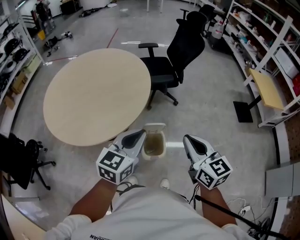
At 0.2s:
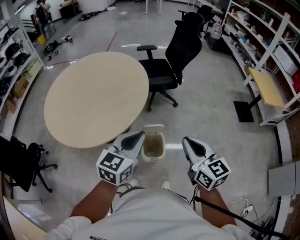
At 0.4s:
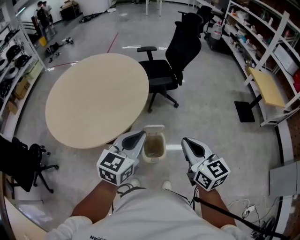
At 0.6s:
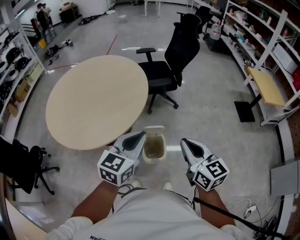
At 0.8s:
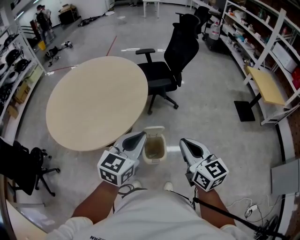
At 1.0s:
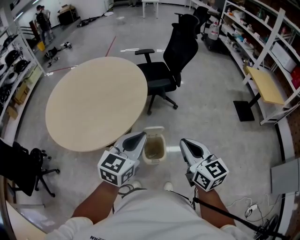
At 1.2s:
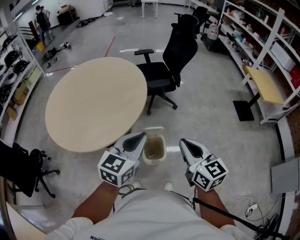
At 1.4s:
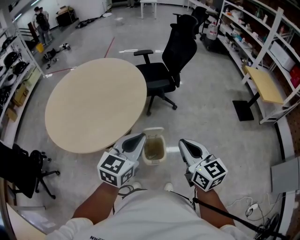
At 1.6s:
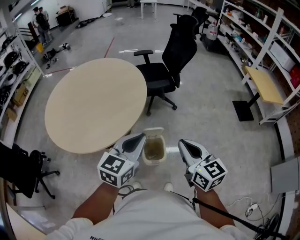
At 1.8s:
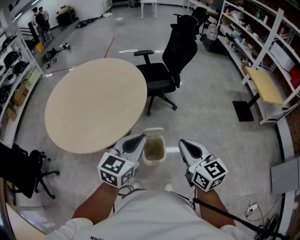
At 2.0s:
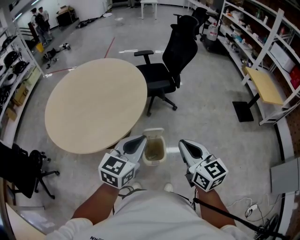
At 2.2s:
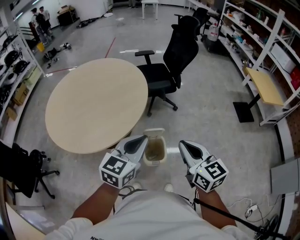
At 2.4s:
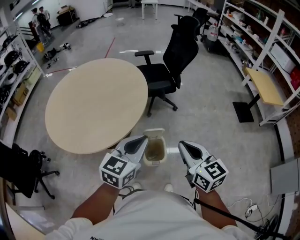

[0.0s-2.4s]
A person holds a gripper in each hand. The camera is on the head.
0.0s to 1.2s: There are only small adjustments of the grippers.
1.2s to 2.4s: Both grippers stay about where they are.

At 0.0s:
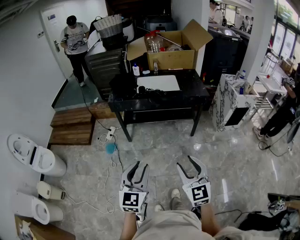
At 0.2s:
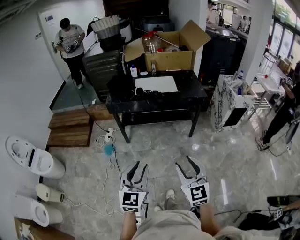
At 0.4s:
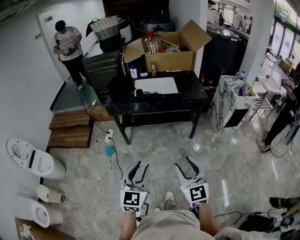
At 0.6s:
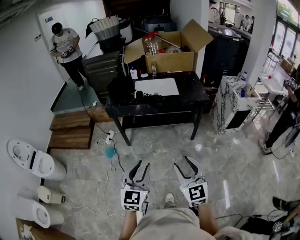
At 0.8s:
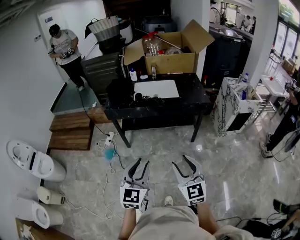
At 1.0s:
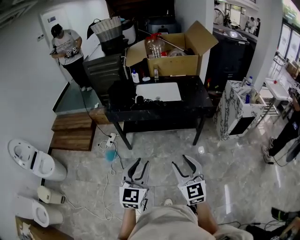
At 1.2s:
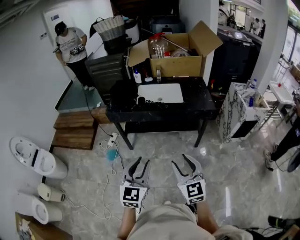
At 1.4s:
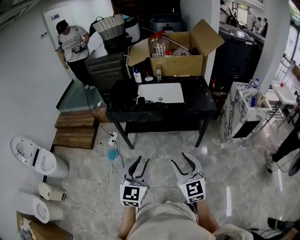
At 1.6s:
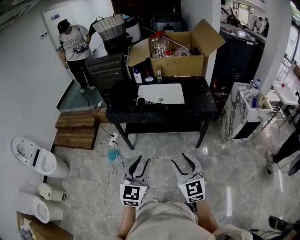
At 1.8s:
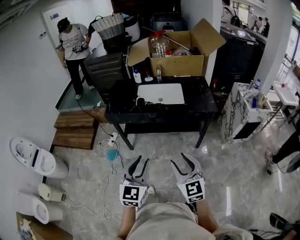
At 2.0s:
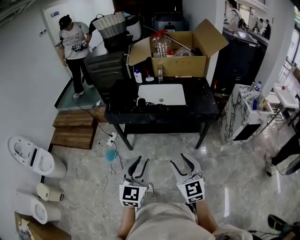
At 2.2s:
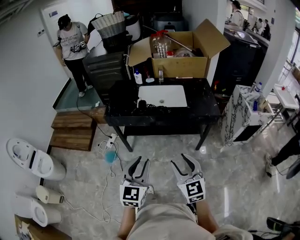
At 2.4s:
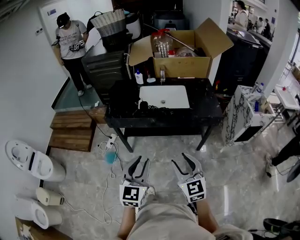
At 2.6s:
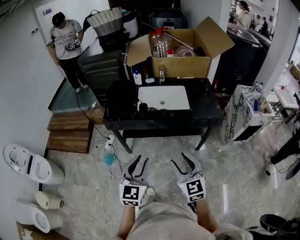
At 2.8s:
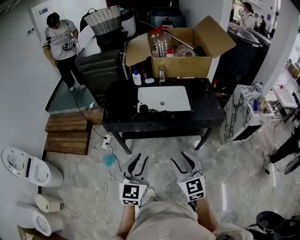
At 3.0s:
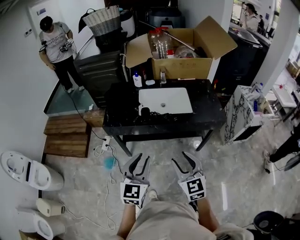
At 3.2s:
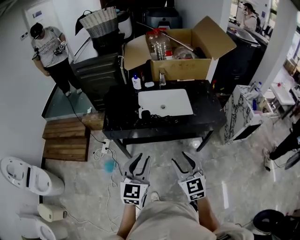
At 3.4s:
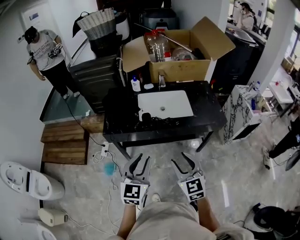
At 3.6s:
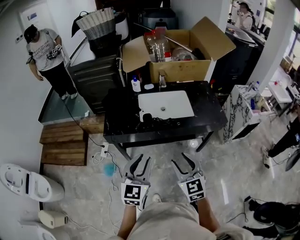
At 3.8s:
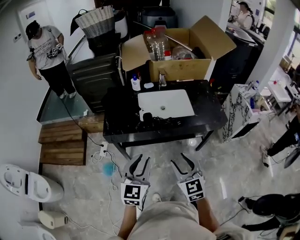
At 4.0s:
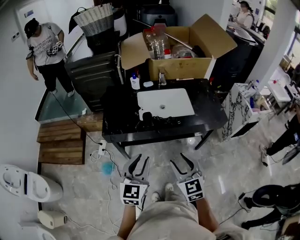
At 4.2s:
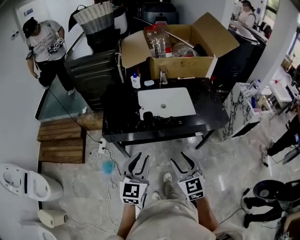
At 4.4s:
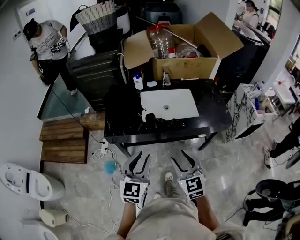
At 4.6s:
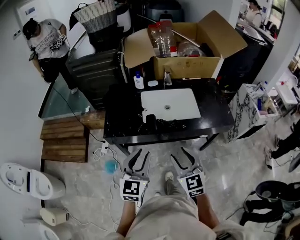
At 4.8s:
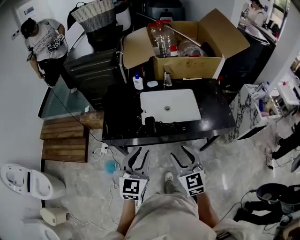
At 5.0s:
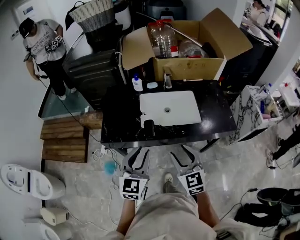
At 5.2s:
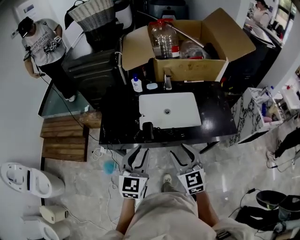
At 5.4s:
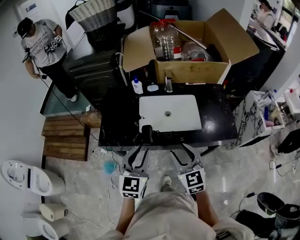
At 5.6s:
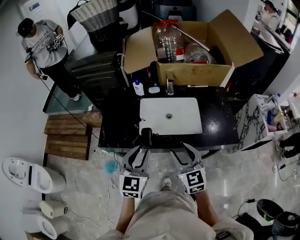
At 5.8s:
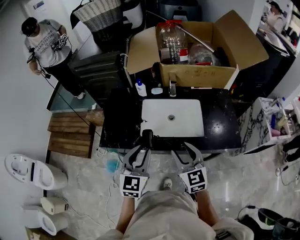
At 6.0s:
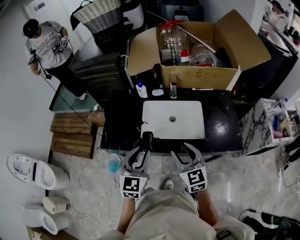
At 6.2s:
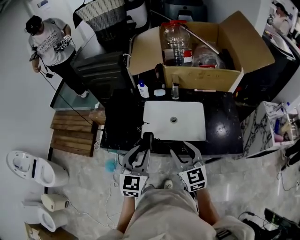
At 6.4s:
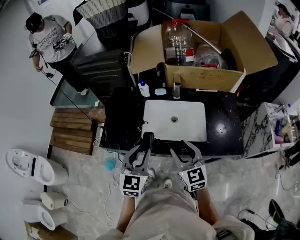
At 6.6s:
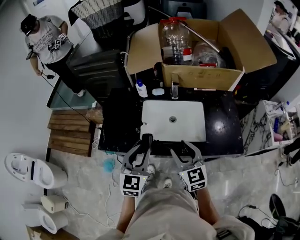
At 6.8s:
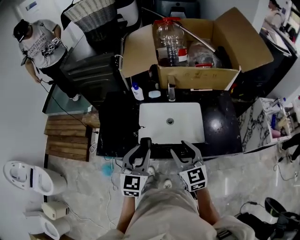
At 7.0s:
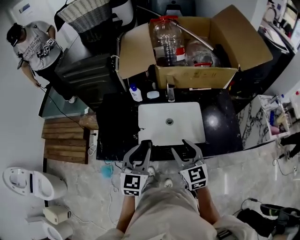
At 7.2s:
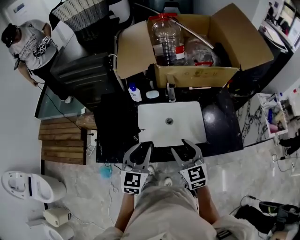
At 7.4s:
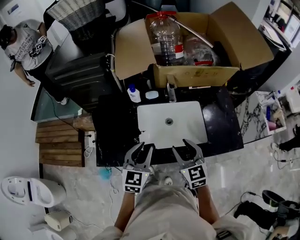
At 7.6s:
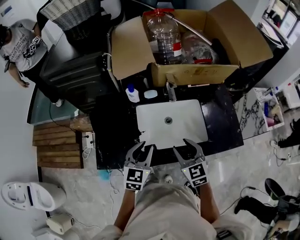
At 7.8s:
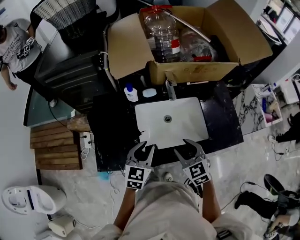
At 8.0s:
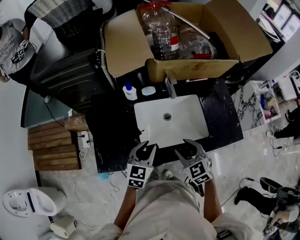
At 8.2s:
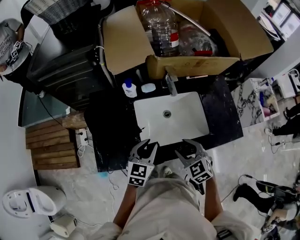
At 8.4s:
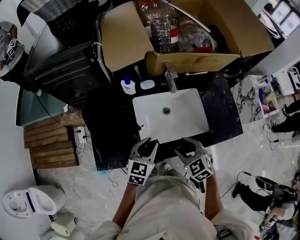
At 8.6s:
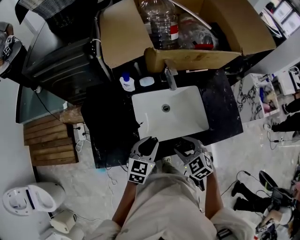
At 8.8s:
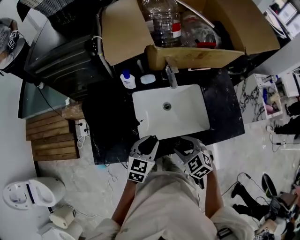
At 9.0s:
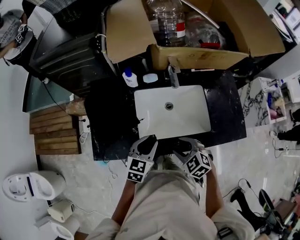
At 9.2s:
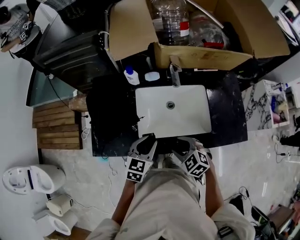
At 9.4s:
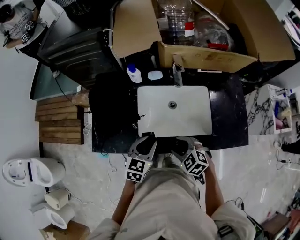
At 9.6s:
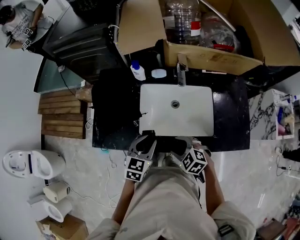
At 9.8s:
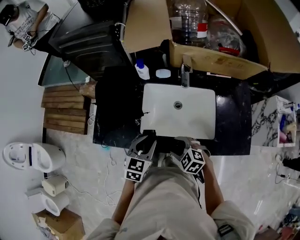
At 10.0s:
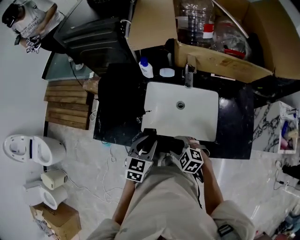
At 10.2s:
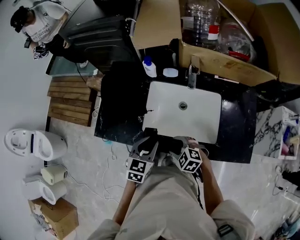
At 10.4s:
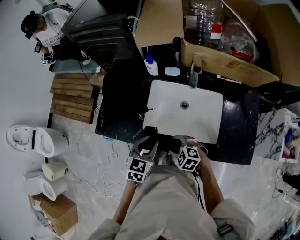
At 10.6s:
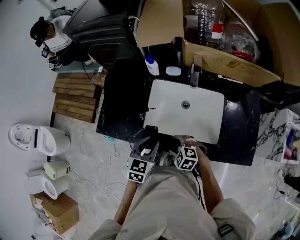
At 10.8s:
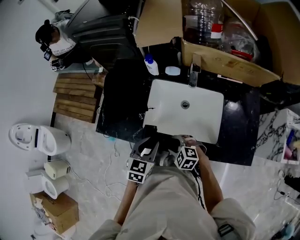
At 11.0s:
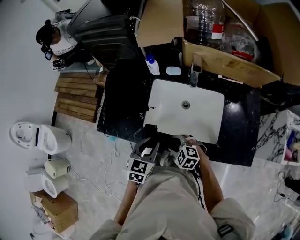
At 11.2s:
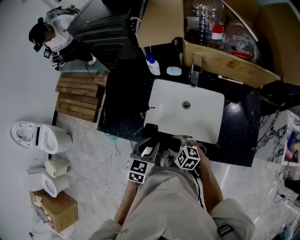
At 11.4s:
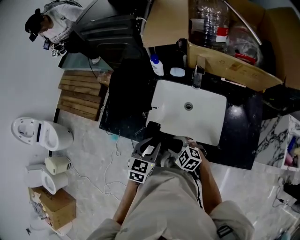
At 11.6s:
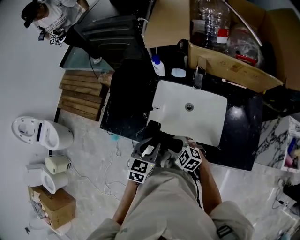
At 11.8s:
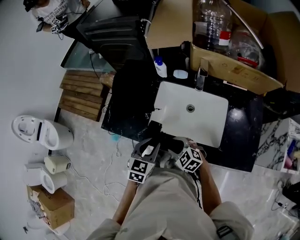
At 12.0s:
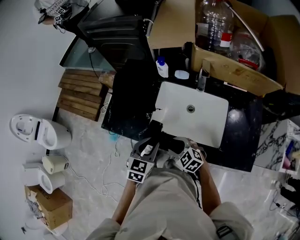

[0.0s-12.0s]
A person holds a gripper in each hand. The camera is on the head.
0.0s to 1.6s: The left gripper is displaced forward and to the right by about 20 cm; the right gripper goes approximately 20 cm forward.
1.6s to 3.0s: Both grippers move forward and to the left, approximately 20 cm.
3.0s to 4.4s: The grippers both shift forward and to the left by about 10 cm.
4.4s to 6.0s: Both grippers move forward and to the right, about 20 cm.
6.0s to 7.6s: Both grippers move forward and downward, some 15 cm.
7.6s to 9.0s: Both grippers move downward, roughly 10 cm. The right gripper swivels approximately 30 degrees.
9.0s to 10.4s: The left gripper changes its angle by some 20 degrees, while the right gripper moves downward, roughly 10 cm, and swivels some 30 degrees.
10.4s to 12.0s: The grippers move only a little.

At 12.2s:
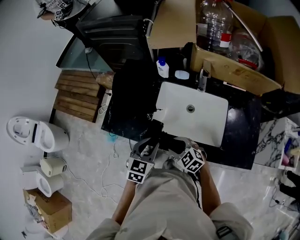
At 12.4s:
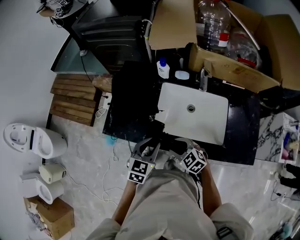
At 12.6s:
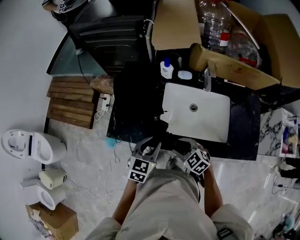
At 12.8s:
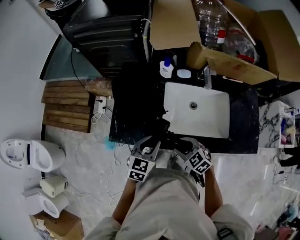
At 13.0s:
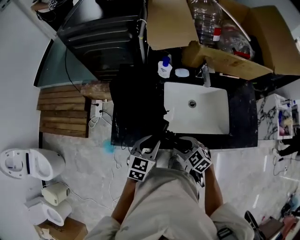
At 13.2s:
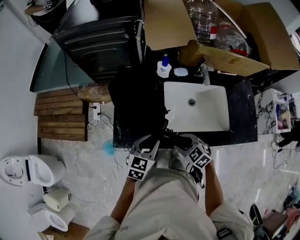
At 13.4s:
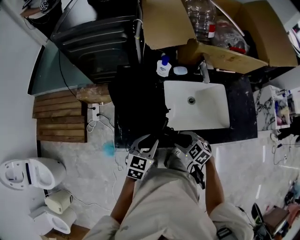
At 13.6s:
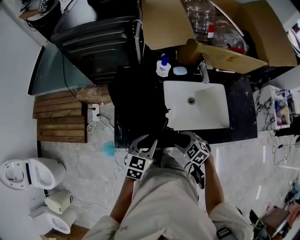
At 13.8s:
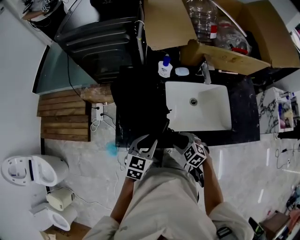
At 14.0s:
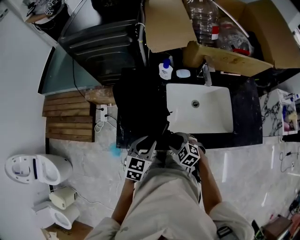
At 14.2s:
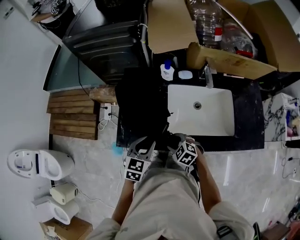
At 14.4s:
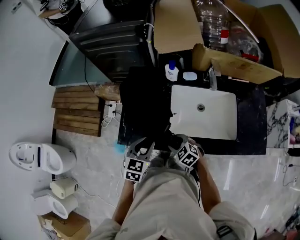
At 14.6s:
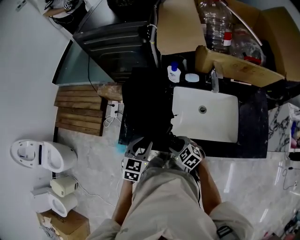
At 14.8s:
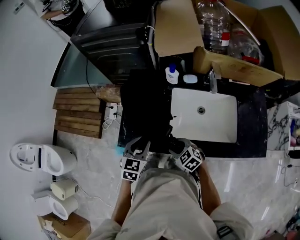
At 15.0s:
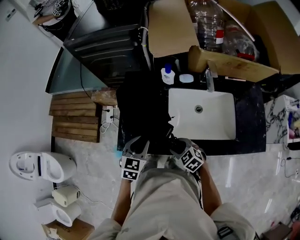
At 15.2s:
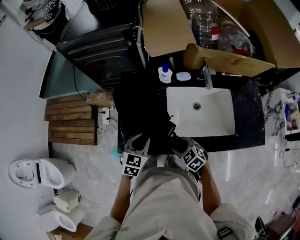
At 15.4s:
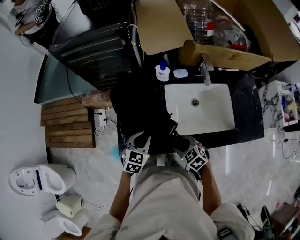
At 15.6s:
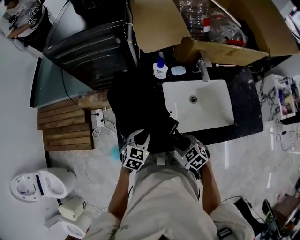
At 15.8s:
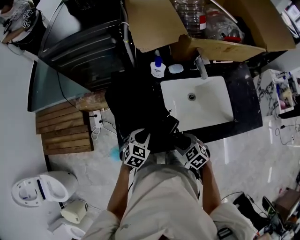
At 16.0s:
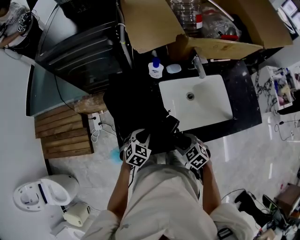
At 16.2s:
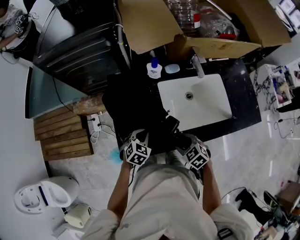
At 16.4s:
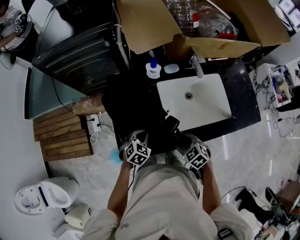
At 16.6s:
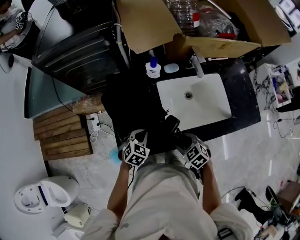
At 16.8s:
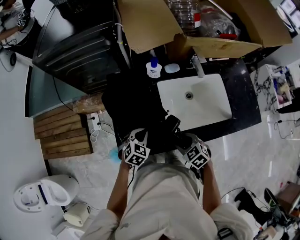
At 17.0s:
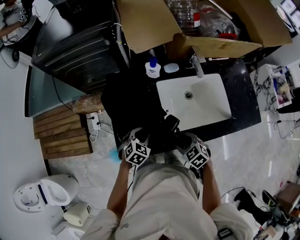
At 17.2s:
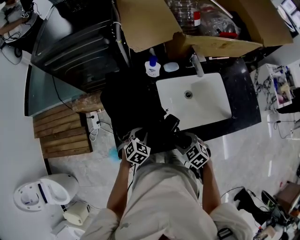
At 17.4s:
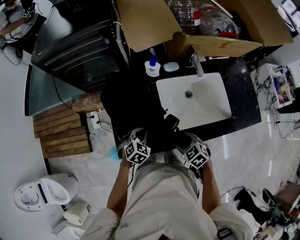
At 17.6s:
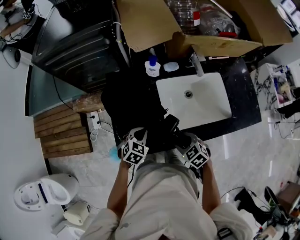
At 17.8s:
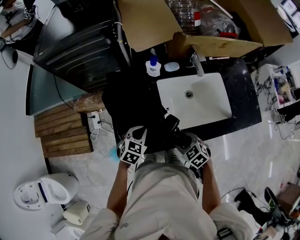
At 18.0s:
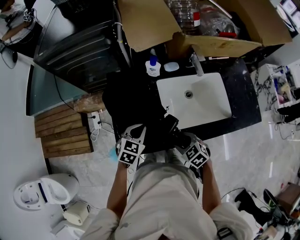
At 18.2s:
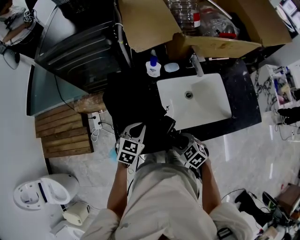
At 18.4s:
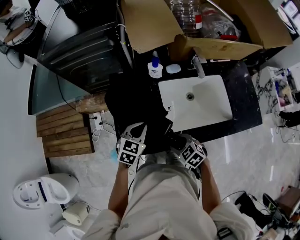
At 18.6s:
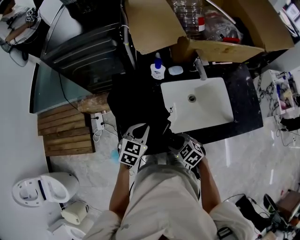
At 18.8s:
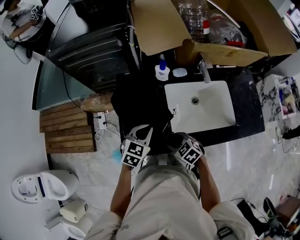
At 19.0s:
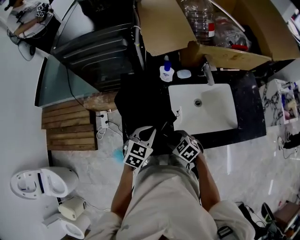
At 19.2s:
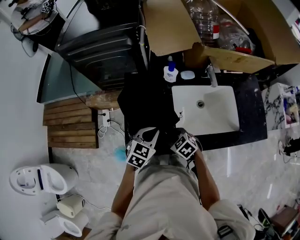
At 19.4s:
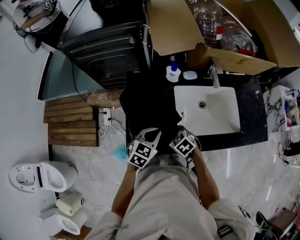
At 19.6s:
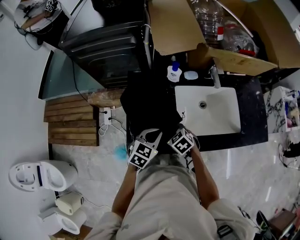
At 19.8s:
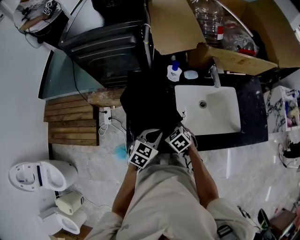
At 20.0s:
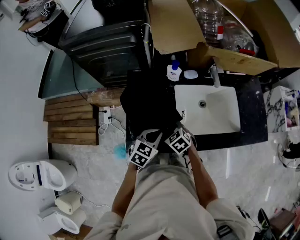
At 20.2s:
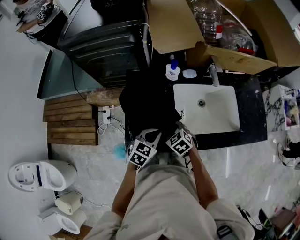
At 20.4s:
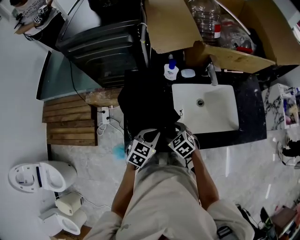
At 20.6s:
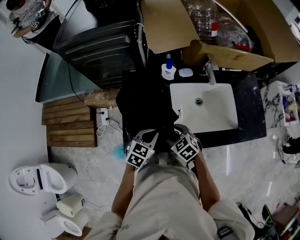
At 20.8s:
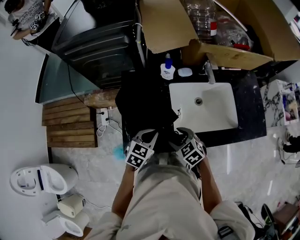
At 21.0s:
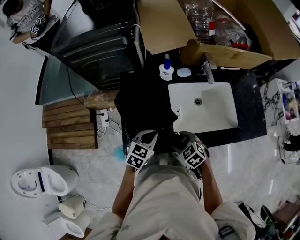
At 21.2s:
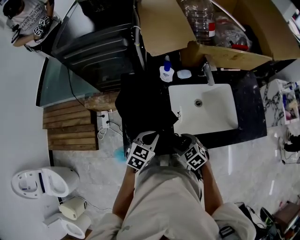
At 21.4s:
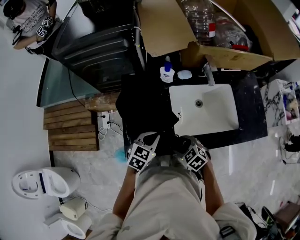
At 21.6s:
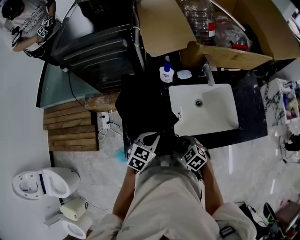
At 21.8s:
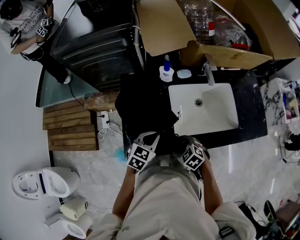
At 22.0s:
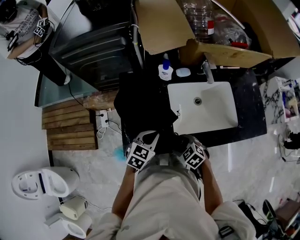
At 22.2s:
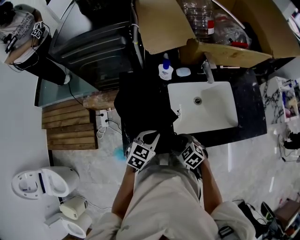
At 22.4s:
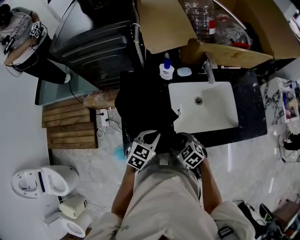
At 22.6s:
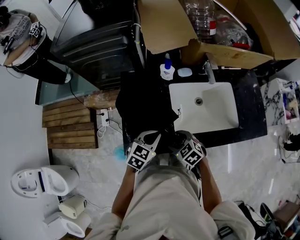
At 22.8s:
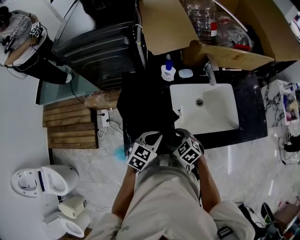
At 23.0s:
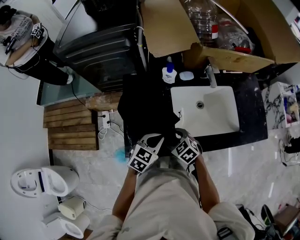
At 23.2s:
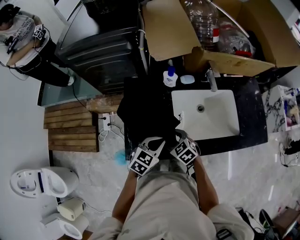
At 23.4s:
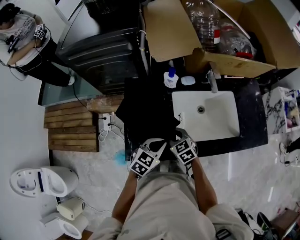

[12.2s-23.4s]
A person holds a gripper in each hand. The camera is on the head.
12.2s to 13.8s: The left gripper travels to the left and forward by about 15 cm, while the right gripper is displaced to the left by some 10 cm.
13.8s to 15.4s: The left gripper goes roughly 5 cm forward.
15.4s to 17.0s: The left gripper goes some 5 cm downward, and turns by some 20 degrees.
17.0s to 18.6s: The left gripper heads upward, covering about 10 cm, and closes up.
18.6s to 20.2s: The right gripper is displaced forward by about 10 cm.
20.2s to 21.8s: The right gripper travels backward and to the right by approximately 10 cm.
21.8s to 23.4s: The right gripper moves forward, some 10 cm, turns by approximately 20 degrees, and closes up.
